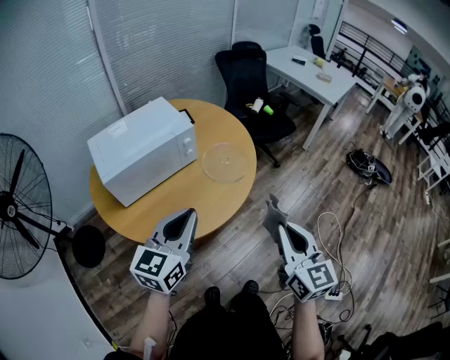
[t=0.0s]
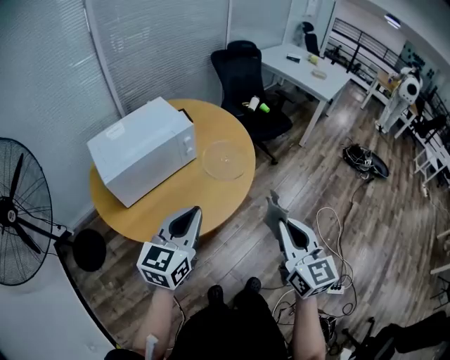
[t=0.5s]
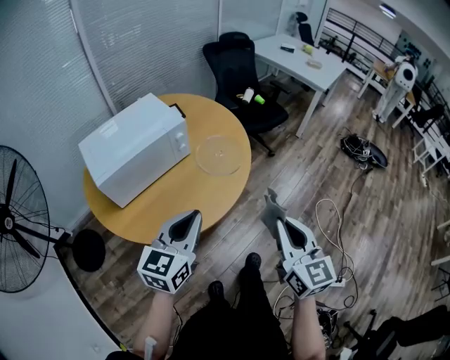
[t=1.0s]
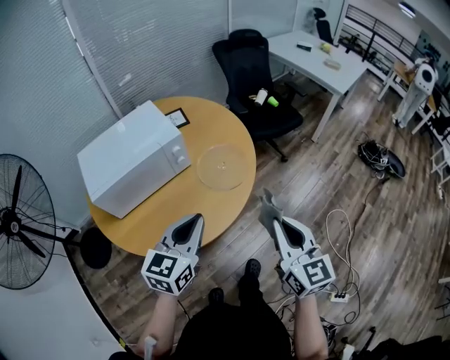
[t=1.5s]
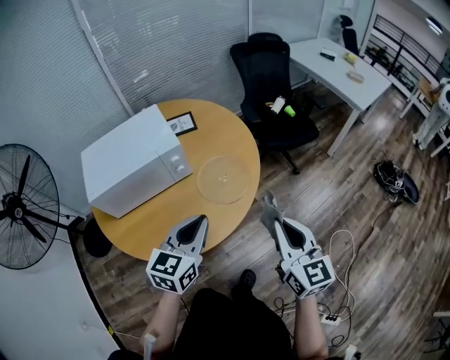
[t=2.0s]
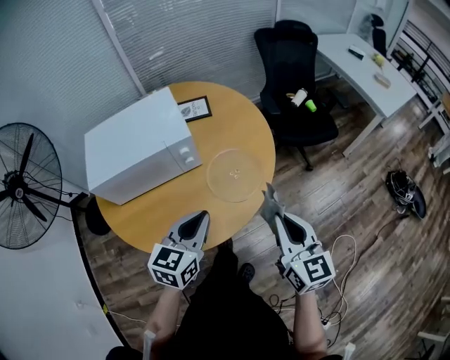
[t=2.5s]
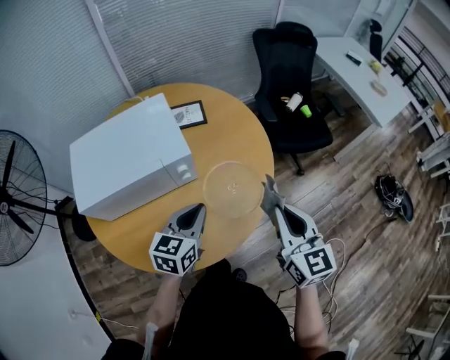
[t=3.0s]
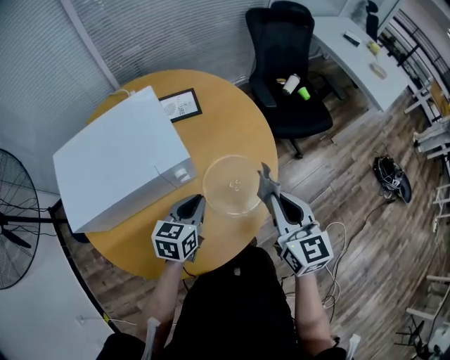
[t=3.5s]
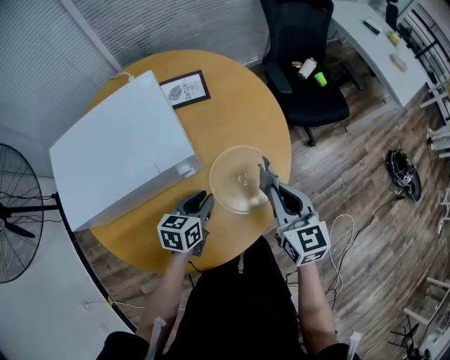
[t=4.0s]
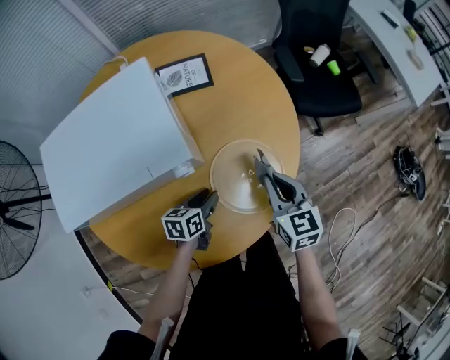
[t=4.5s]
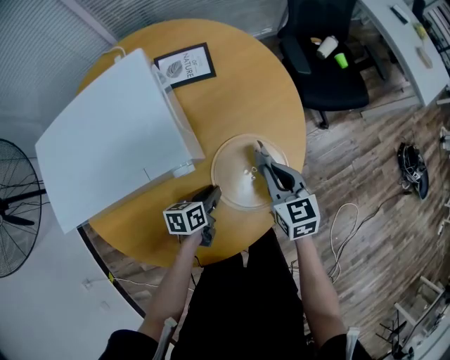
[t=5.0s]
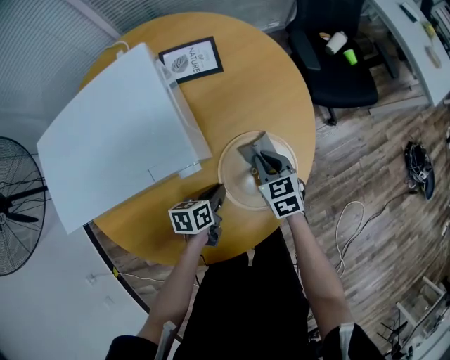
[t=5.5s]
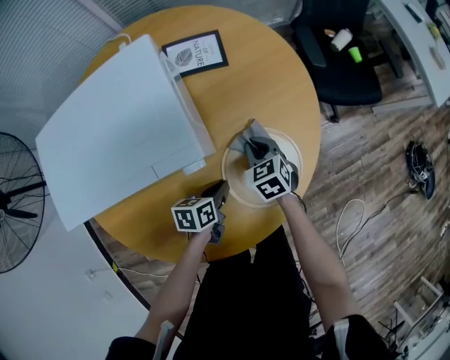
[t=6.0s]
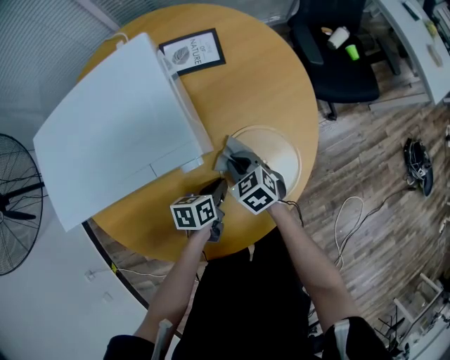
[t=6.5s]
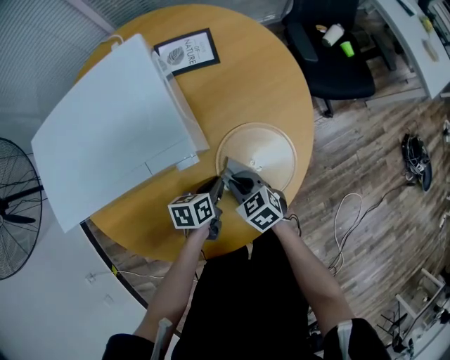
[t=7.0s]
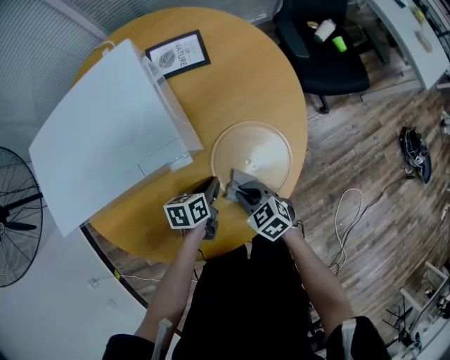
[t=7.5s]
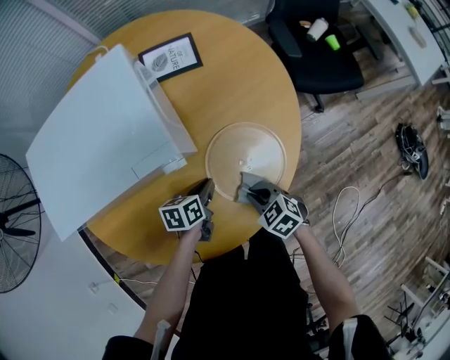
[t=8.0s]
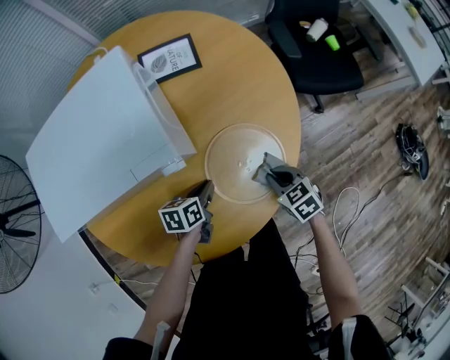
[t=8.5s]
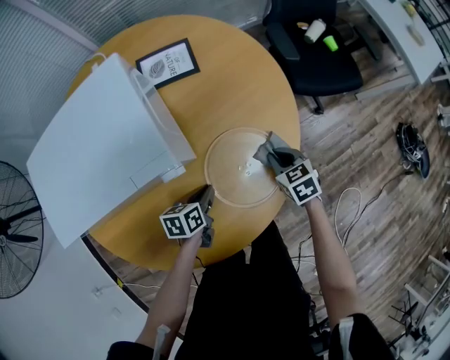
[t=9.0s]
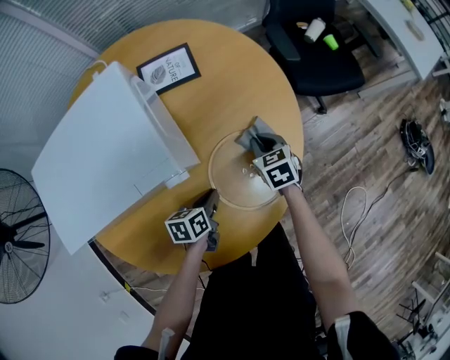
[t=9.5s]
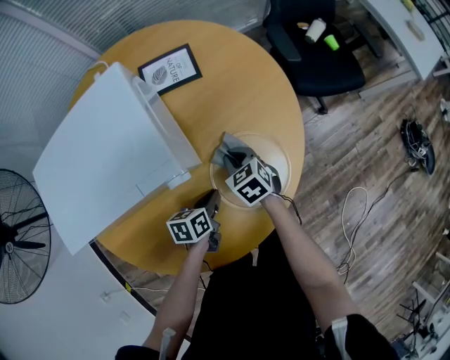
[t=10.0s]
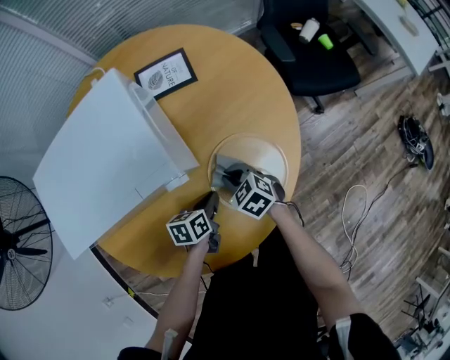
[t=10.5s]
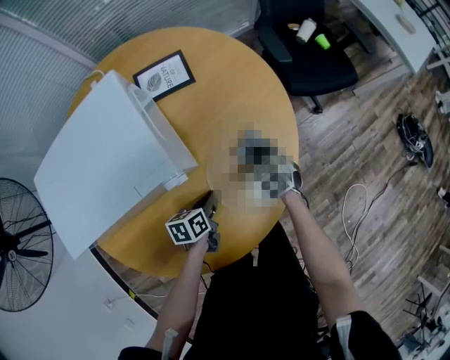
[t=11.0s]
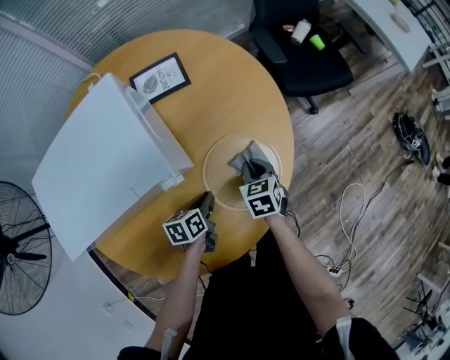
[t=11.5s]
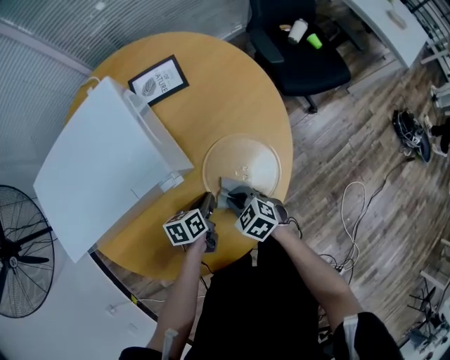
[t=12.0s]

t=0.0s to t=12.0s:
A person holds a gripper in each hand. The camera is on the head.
t=0.0s to t=2.0s: Both grippers move forward and to the right, about 20 cm.
t=2.0s to t=4.0s: The left gripper moves downward and forward, some 30 cm, and turns by approximately 30 degrees. Meanwhile the right gripper shifts approximately 30 cm forward and downward.
t=4.0s to t=6.0s: The right gripper shifts about 25 cm downward, to the left and forward, and turns by roughly 30 degrees; the left gripper goes some 10 cm downward, and rotates about 20 degrees.
t=6.0s to t=8.0s: The right gripper shifts roughly 20 cm backward, and rotates about 20 degrees.
t=8.0s to t=10.0s: The right gripper goes some 15 cm forward.
t=10.0s to t=12.0s: The right gripper swings forward and backward, approximately 15 cm each way, with 2 reversals.

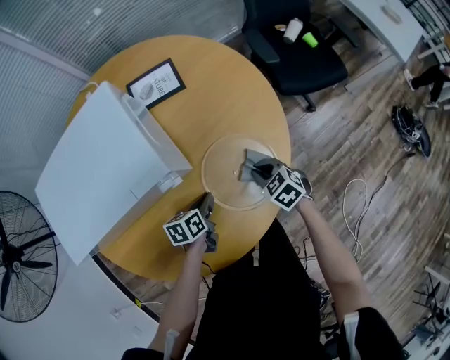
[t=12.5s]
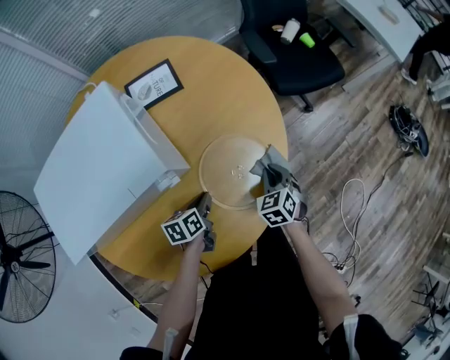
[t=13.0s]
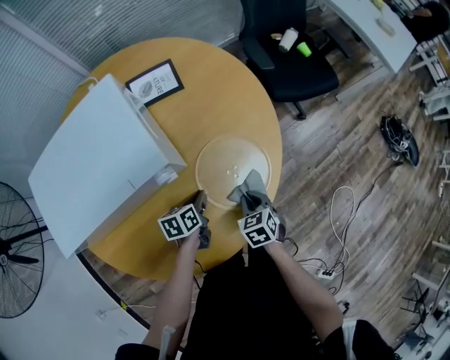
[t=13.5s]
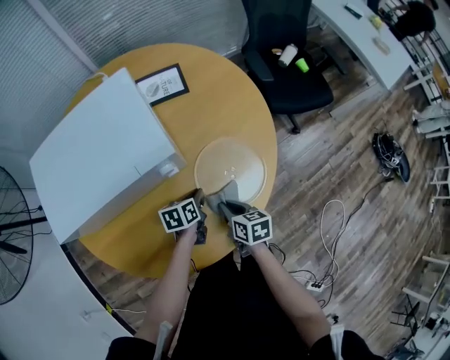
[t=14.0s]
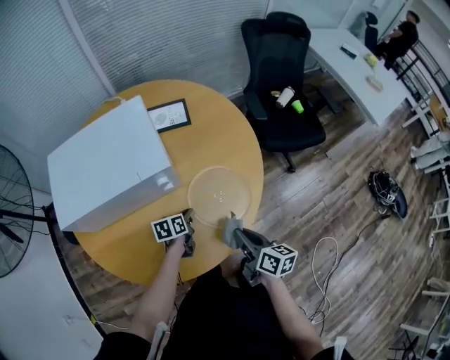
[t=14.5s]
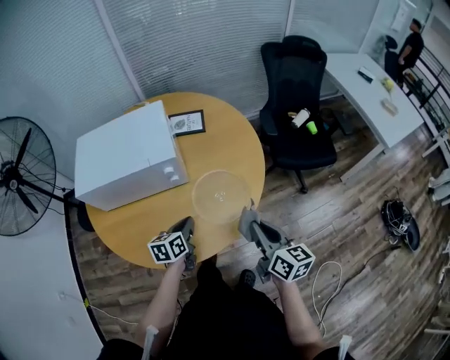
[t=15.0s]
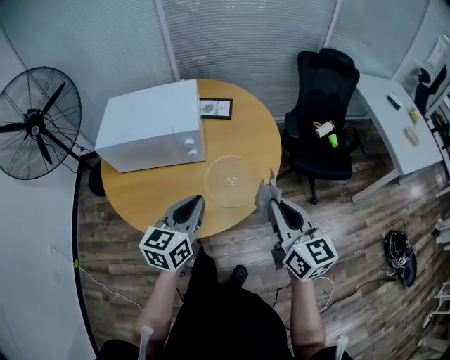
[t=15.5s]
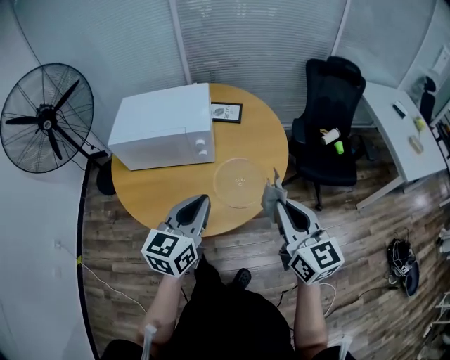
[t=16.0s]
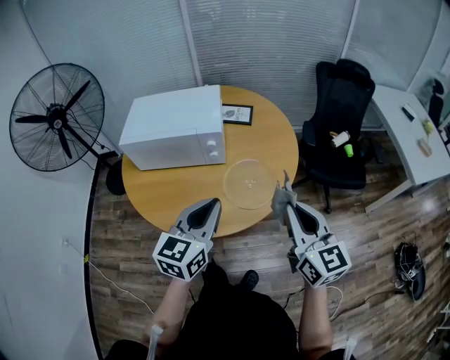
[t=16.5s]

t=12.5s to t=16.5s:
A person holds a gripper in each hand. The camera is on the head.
t=12.5s to t=14.5s: The right gripper heads upward, covering some 15 cm, and tilts its fingers approximately 30 degrees upward.
t=14.5s to t=16.5s: The left gripper travels upward and backward by about 40 cm, and points its fingers about 30 degrees further upward. Meanwhile the right gripper is displaced upward by approximately 25 cm, and rolls counterclockwise, seen from behind, by about 50 degrees.

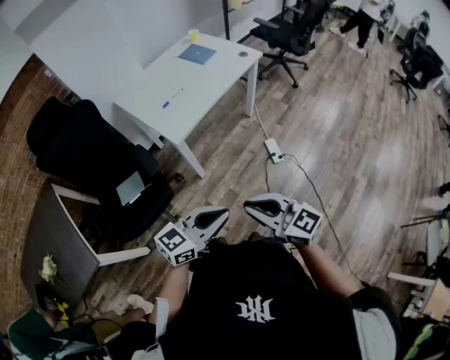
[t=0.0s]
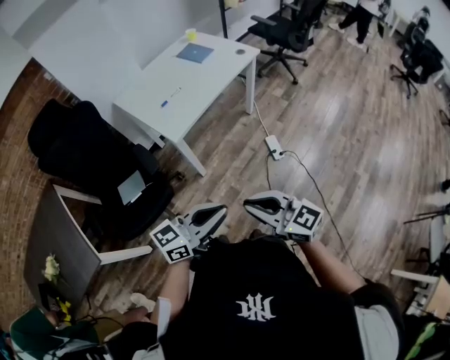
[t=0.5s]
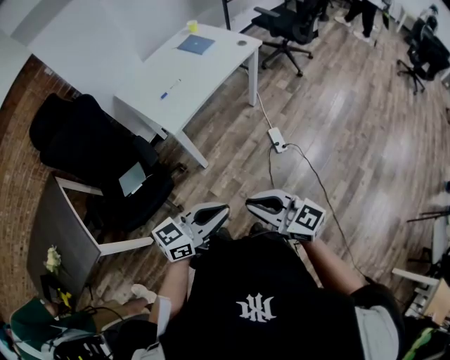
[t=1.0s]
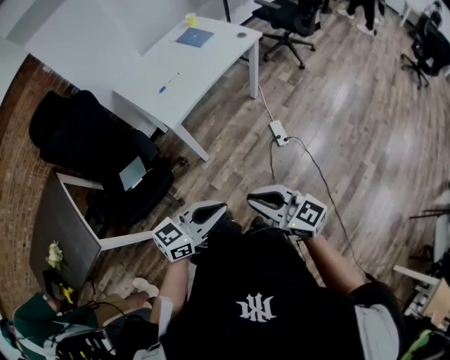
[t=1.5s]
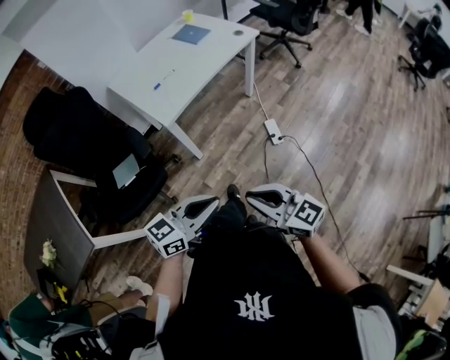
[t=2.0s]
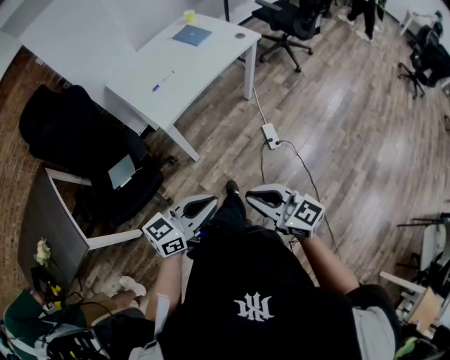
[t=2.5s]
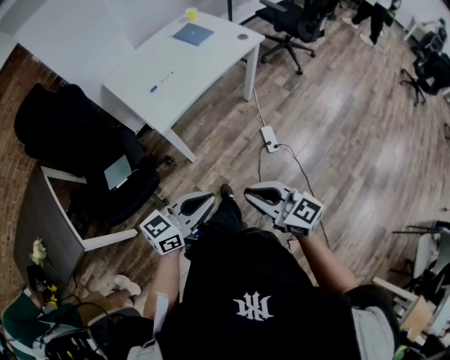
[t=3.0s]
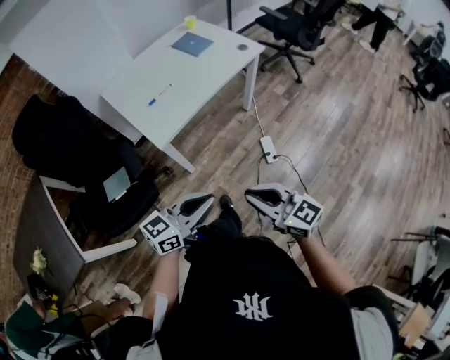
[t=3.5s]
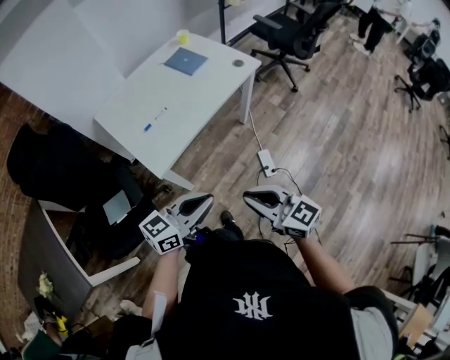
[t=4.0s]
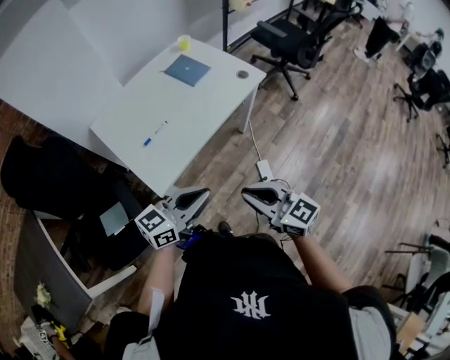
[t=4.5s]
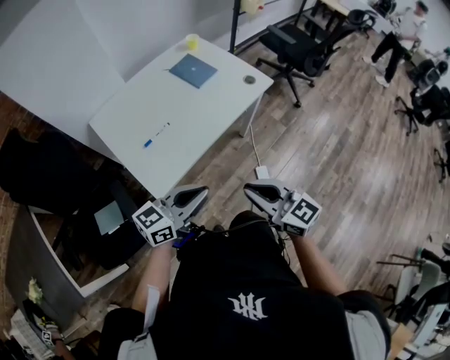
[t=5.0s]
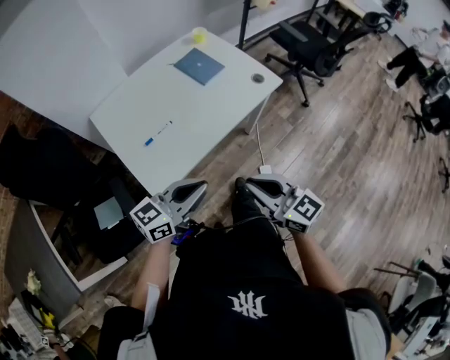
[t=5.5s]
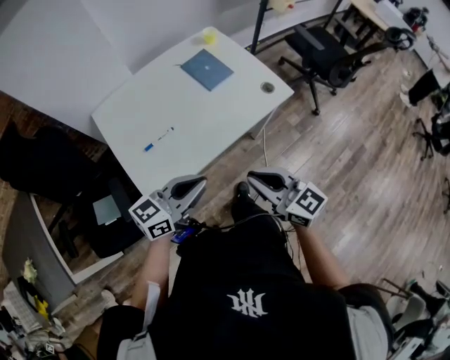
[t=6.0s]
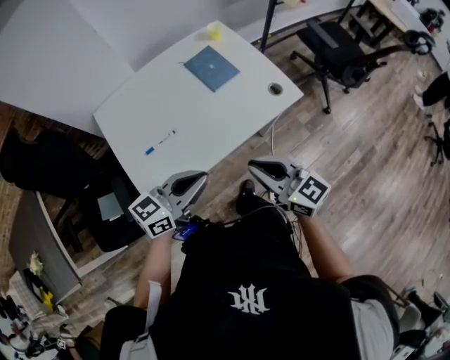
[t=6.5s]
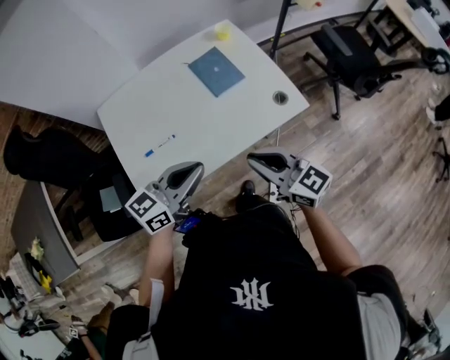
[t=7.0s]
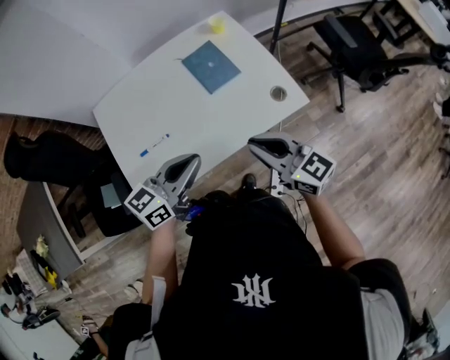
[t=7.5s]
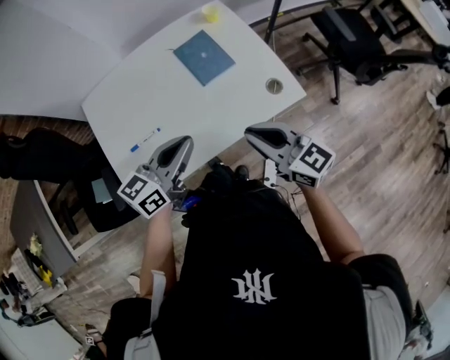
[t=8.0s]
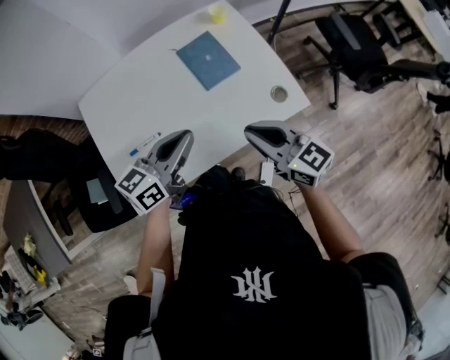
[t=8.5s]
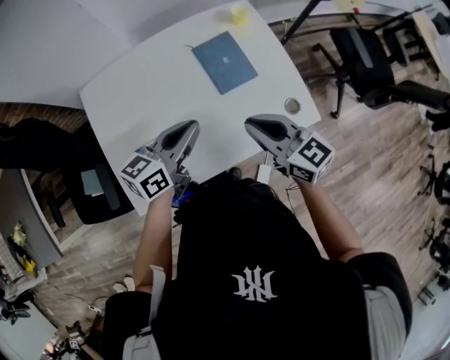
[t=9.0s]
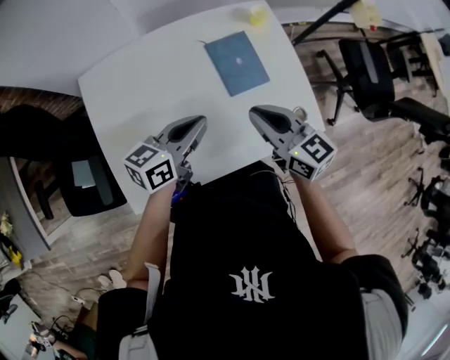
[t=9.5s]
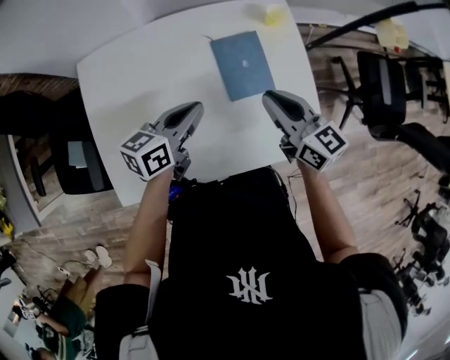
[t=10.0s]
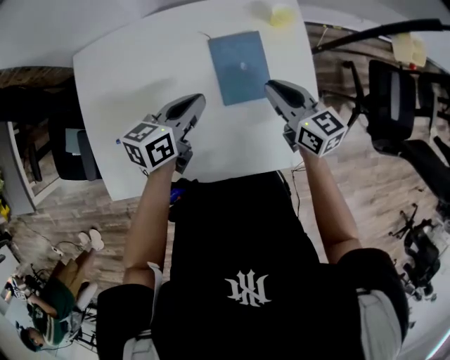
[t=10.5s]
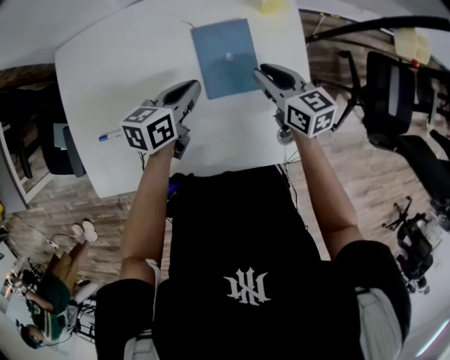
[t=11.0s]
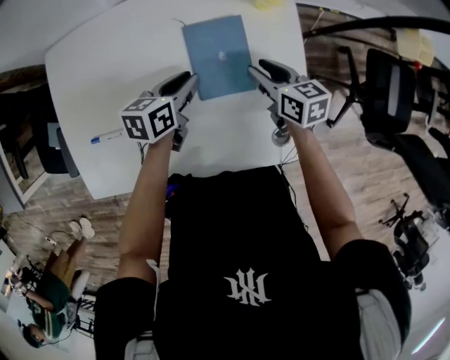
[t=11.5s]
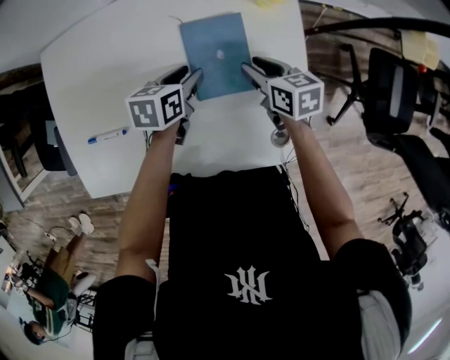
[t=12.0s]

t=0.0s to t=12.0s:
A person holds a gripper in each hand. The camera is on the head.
t=0.0s to t=2.0s: The right gripper travels to the right by some 5 cm.
t=2.0s to t=4.0s: The grippers both shift forward by about 25 cm.
t=4.0s to t=6.0s: The two grippers go roughly 25 cm forward.
t=6.0s to t=8.0s: The left gripper shifts about 20 cm forward, and swivels about 20 degrees, while the right gripper travels forward and to the right by about 20 cm.
t=8.0s to t=10.0s: The right gripper travels forward by some 25 cm, while the left gripper is displaced forward and downward by about 20 cm, and rotates some 20 degrees.
t=10.0s to t=12.0s: The left gripper travels downward, forward and to the right by roughly 20 cm, rotates roughly 30 degrees, and opens. The right gripper shifts some 20 cm downward and forward, swivels roughly 30 degrees, and opens.
